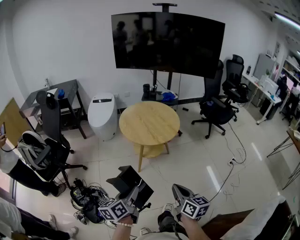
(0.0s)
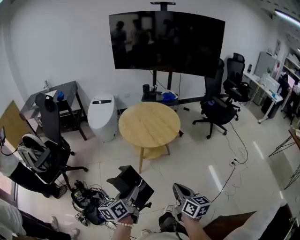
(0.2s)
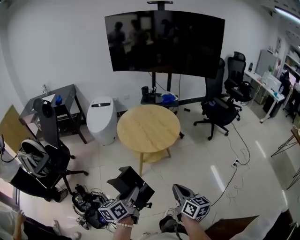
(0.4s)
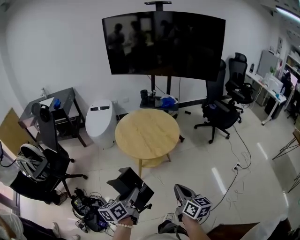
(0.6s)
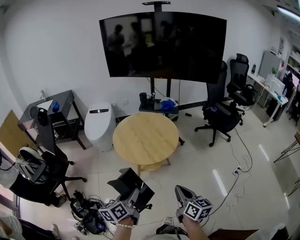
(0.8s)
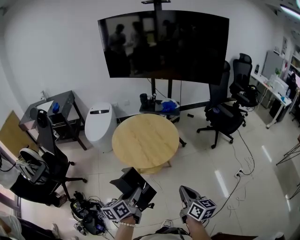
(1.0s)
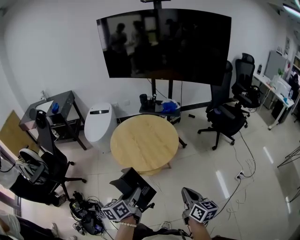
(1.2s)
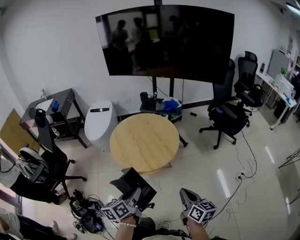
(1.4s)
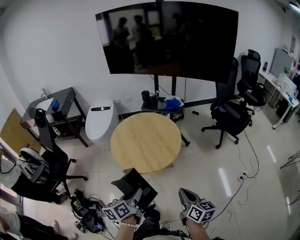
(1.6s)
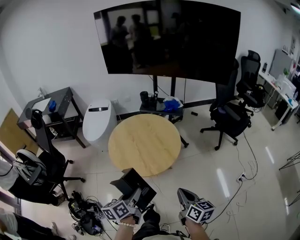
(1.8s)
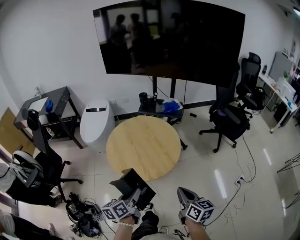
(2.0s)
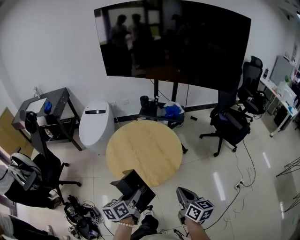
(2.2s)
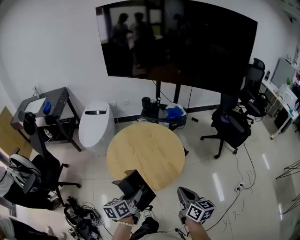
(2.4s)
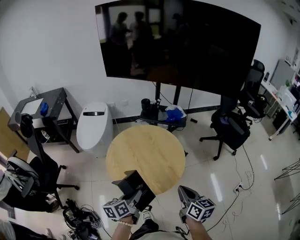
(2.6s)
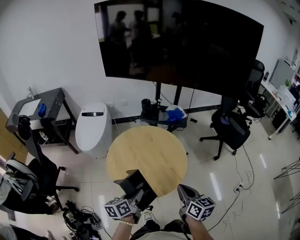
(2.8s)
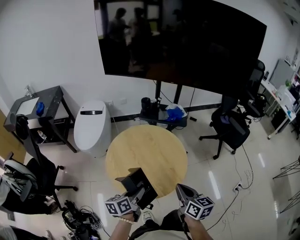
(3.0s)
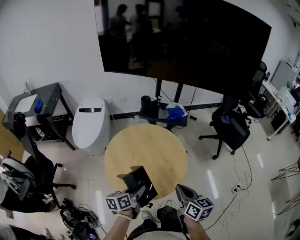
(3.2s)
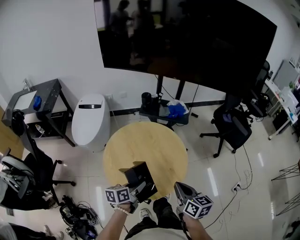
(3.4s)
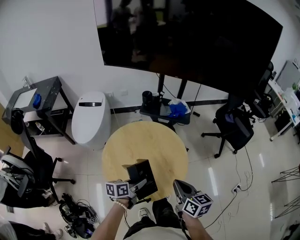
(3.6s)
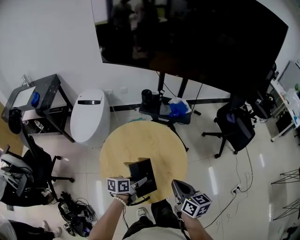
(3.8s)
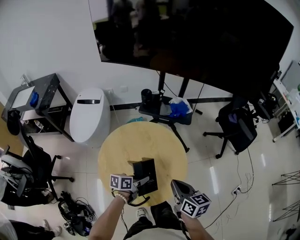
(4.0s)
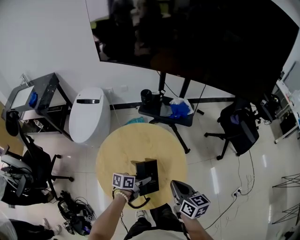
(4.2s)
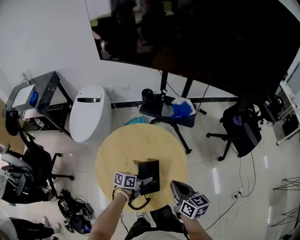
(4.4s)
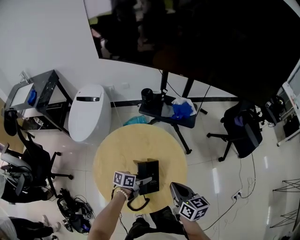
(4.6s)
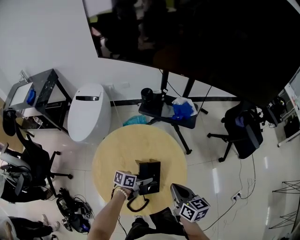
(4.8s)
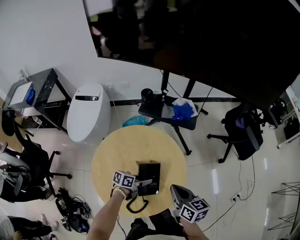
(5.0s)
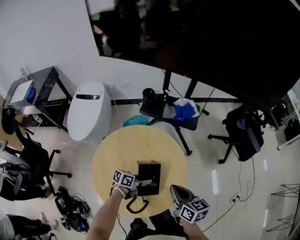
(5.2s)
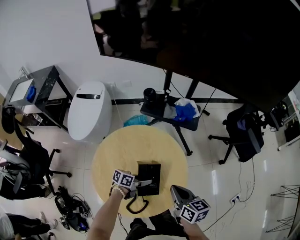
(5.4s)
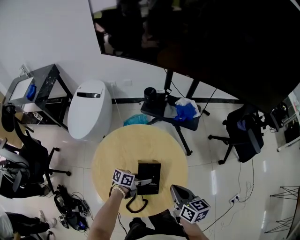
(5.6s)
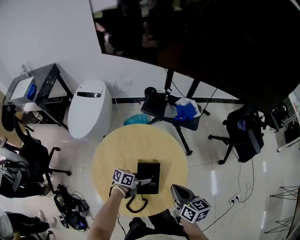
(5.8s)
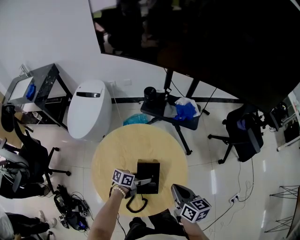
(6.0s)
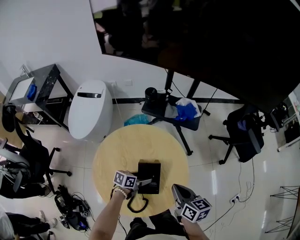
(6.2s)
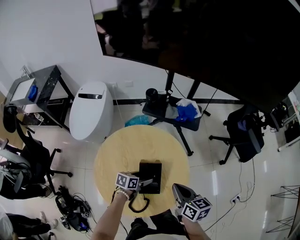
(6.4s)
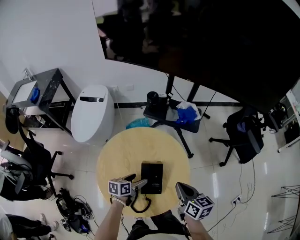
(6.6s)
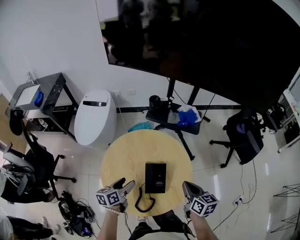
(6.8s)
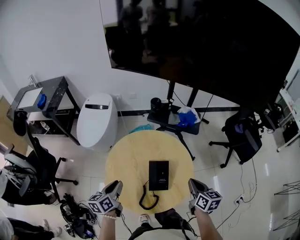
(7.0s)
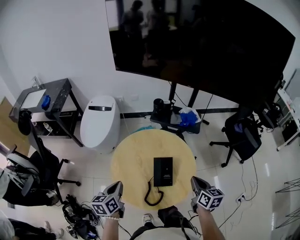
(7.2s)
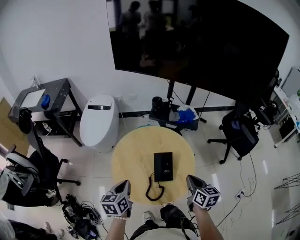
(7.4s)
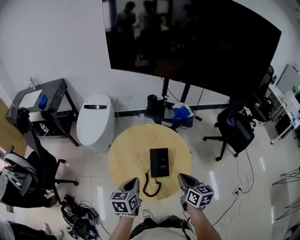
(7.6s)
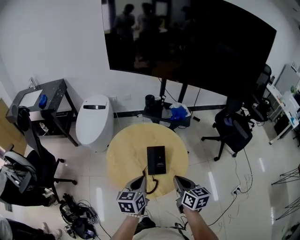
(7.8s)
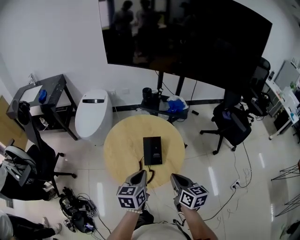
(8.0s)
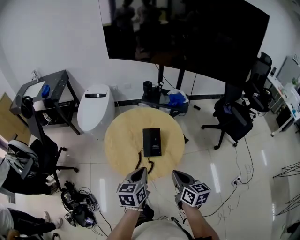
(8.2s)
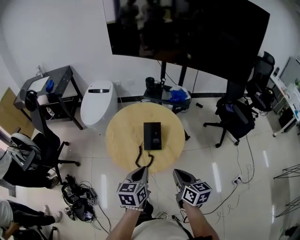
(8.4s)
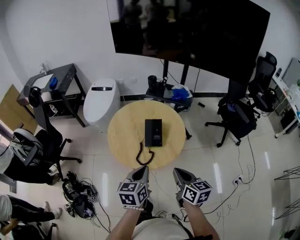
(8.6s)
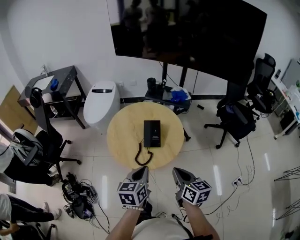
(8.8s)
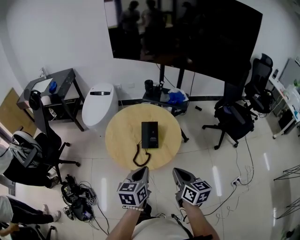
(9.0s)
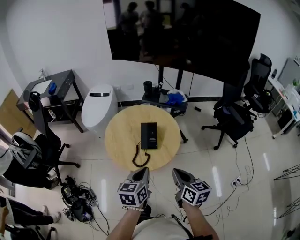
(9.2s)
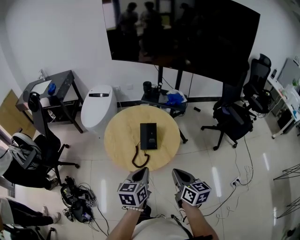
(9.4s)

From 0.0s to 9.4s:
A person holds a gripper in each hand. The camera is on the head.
From 0.0s to 1.6s: Both grippers move forward and to the right, roughly 25 cm.
From 1.6s to 3.2s: Both grippers move forward, about 20 cm.
From 3.2s to 4.8s: The right gripper moves forward, about 15 cm, while the left gripper moves forward, downward and to the right, some 25 cm, and rotates some 30 degrees.
From 4.8s to 6.2s: The left gripper opens.
From 6.2s to 7.8s: The left gripper shifts some 30 cm upward and backward, swivels some 40 degrees, and closes. The right gripper shifts some 15 cm backward and upward.
From 7.8s to 9.4s: The left gripper is displaced backward and to the right by approximately 15 cm. The right gripper goes roughly 15 cm backward.

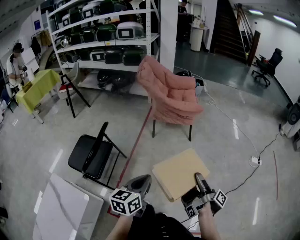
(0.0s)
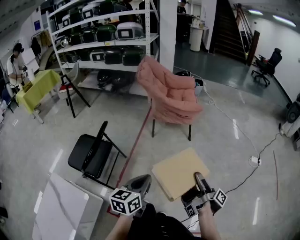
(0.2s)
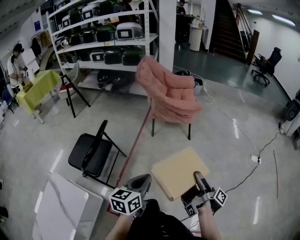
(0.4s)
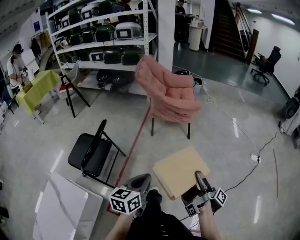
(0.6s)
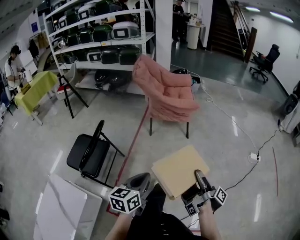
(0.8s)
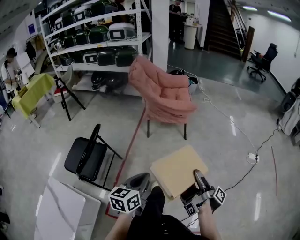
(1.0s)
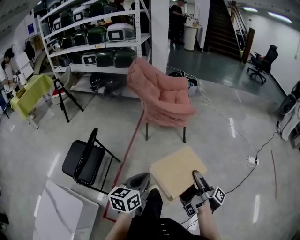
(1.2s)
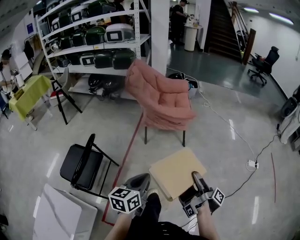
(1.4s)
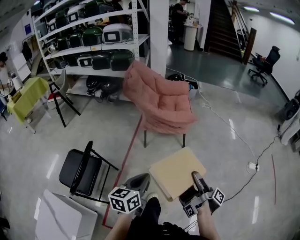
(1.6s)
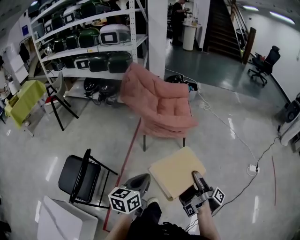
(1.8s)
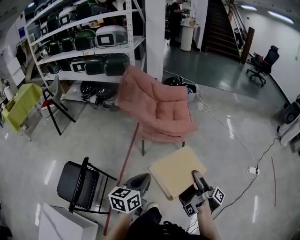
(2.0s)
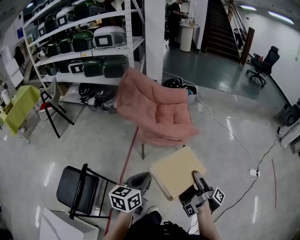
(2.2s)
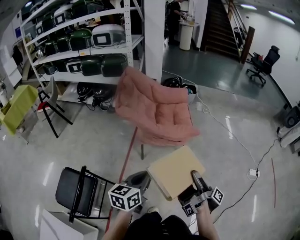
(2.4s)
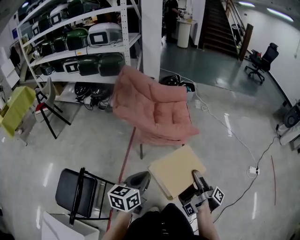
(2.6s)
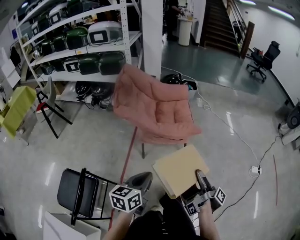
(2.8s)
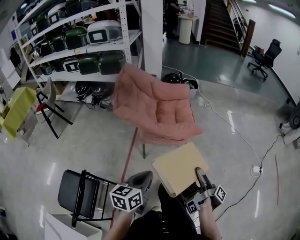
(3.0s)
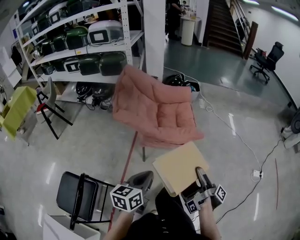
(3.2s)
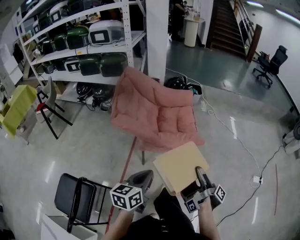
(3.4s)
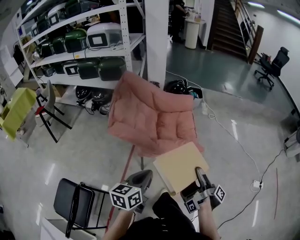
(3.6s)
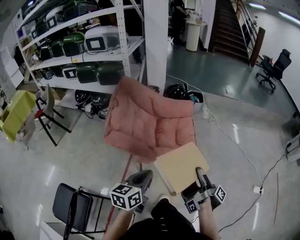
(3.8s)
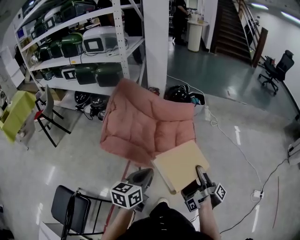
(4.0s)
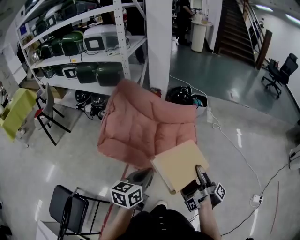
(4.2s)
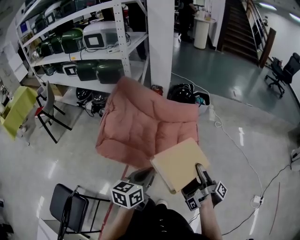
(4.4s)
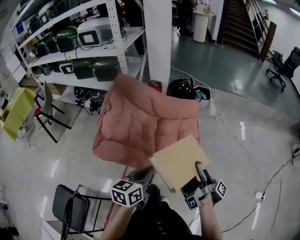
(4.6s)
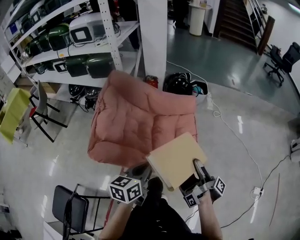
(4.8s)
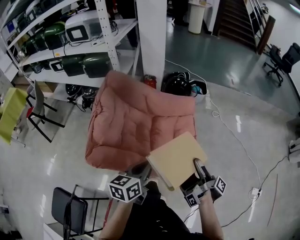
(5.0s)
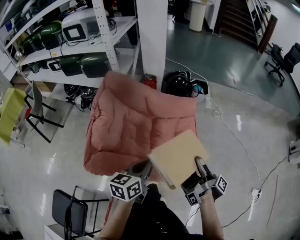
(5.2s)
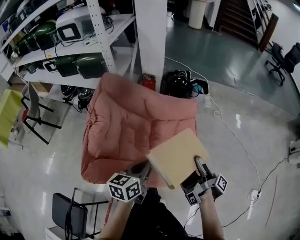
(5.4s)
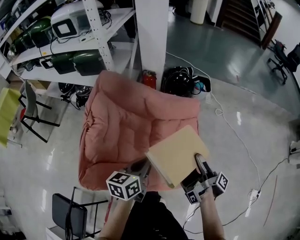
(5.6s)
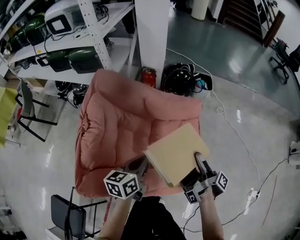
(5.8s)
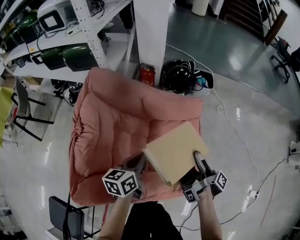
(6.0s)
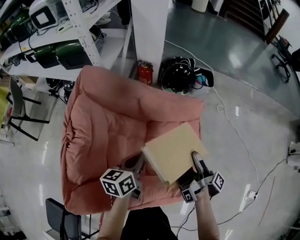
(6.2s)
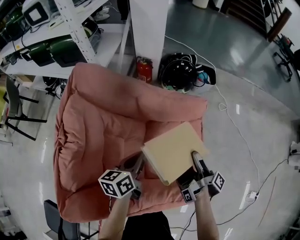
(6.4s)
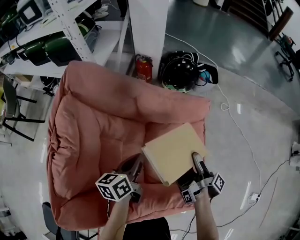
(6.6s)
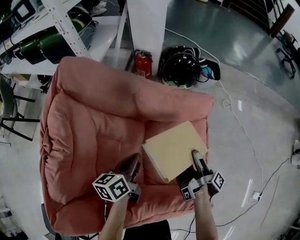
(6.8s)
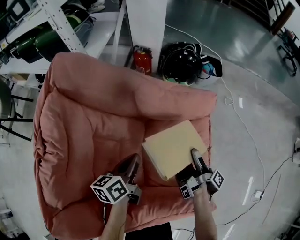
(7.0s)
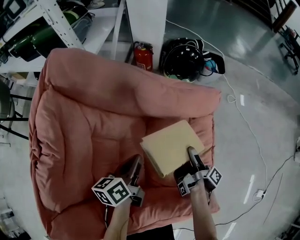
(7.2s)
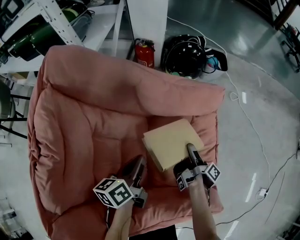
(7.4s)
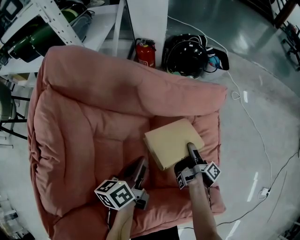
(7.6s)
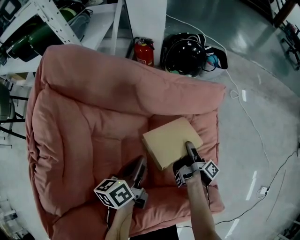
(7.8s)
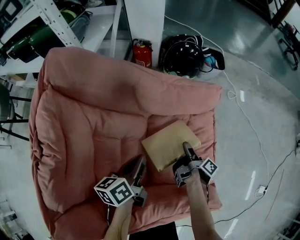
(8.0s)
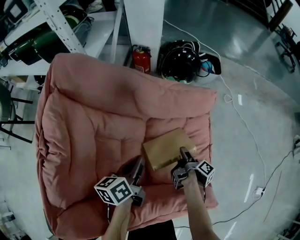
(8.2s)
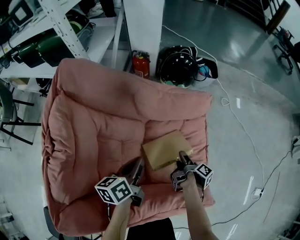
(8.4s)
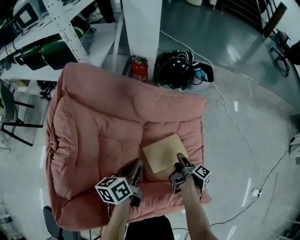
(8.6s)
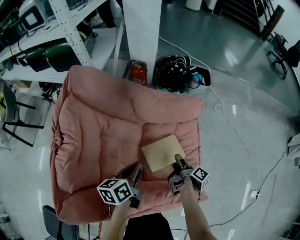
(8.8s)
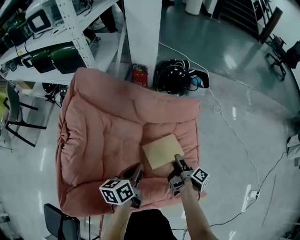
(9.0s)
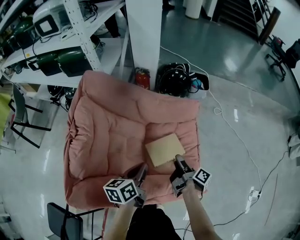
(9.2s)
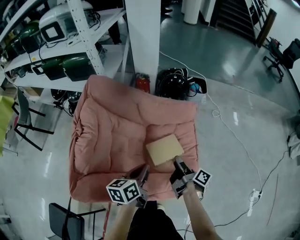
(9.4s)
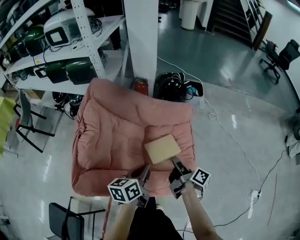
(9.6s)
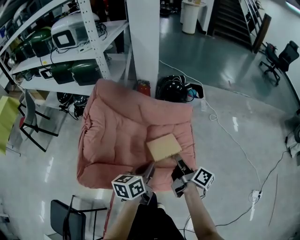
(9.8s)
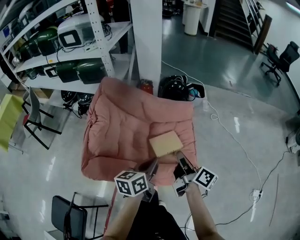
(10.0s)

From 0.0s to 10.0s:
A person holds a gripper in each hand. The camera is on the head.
From 0.0s to 1.4s: The left gripper ends up roughly 10 cm from where it was.
From 1.4s to 2.8s: The left gripper shifts by about 30 cm.
From 2.8s to 4.2s: The left gripper ends up approximately 30 cm from where it was.
From 4.2s to 5.8s: The left gripper ends up about 30 cm from where it was.
From 5.8s to 7.2s: The left gripper is displaced downward by about 20 cm.
From 7.2s to 8.6s: The left gripper moves upward, about 5 cm.
From 8.6s to 10.0s: The left gripper is displaced upward by some 20 cm.

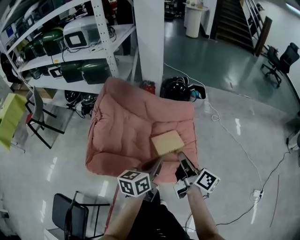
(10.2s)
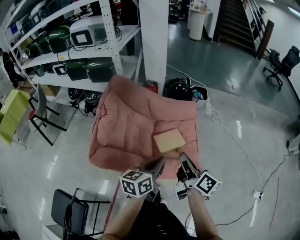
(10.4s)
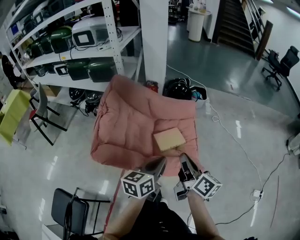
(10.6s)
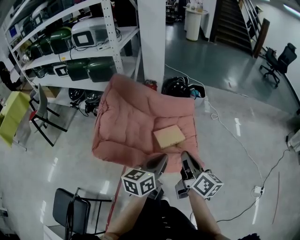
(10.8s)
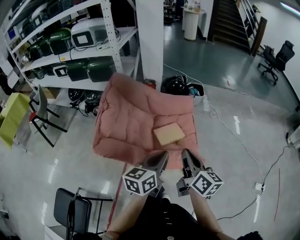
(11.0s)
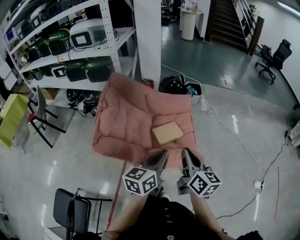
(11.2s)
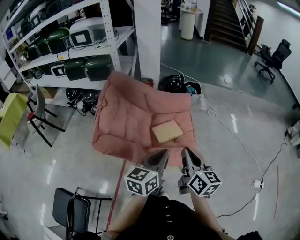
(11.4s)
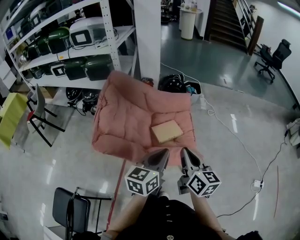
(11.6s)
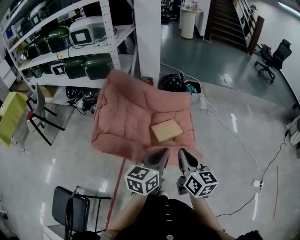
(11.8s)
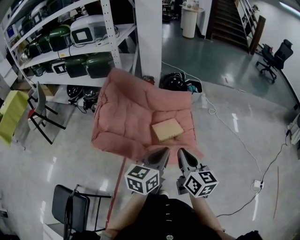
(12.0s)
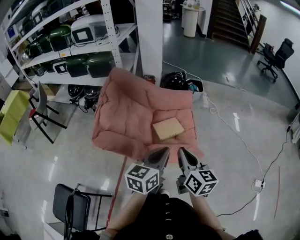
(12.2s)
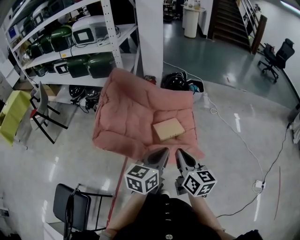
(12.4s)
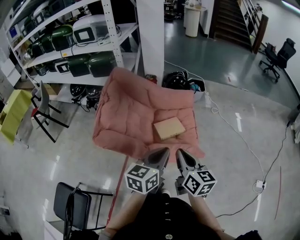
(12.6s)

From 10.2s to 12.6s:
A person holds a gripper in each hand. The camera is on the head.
From 10.2s to 11.4s: The left gripper changes place by about 10 cm.

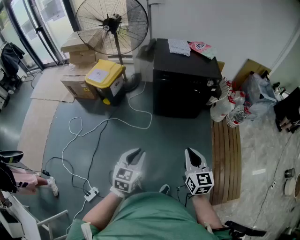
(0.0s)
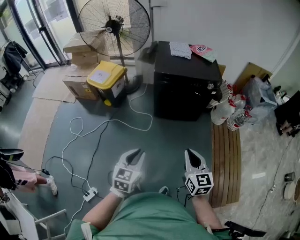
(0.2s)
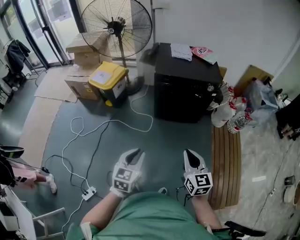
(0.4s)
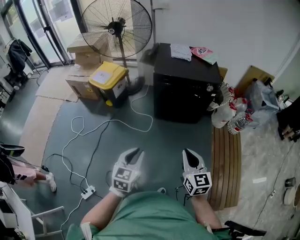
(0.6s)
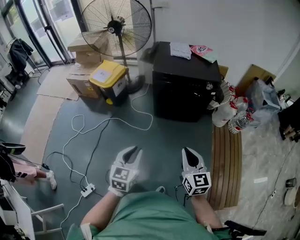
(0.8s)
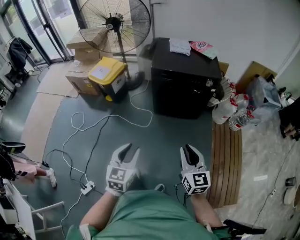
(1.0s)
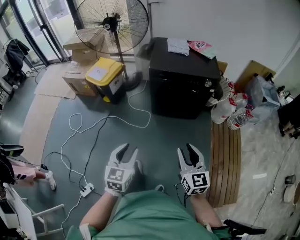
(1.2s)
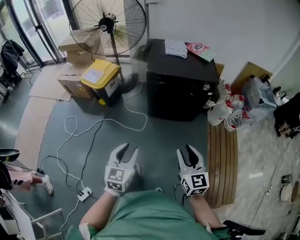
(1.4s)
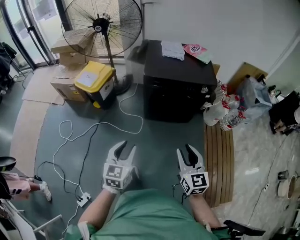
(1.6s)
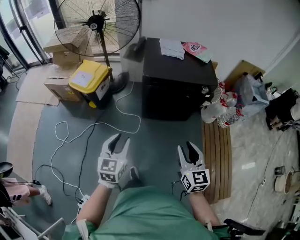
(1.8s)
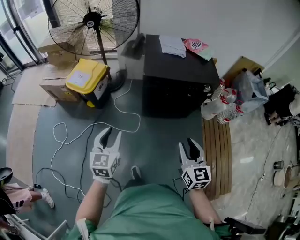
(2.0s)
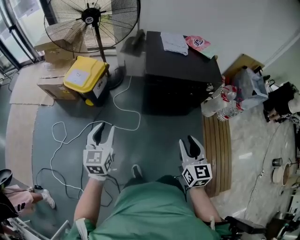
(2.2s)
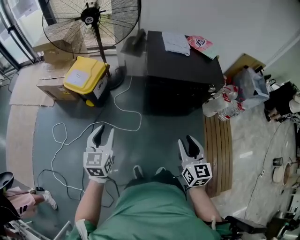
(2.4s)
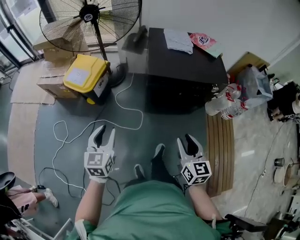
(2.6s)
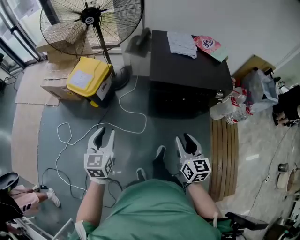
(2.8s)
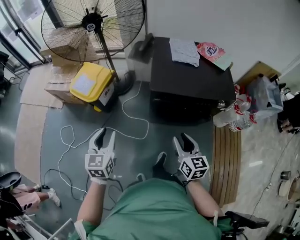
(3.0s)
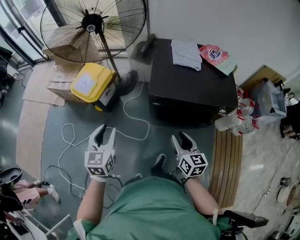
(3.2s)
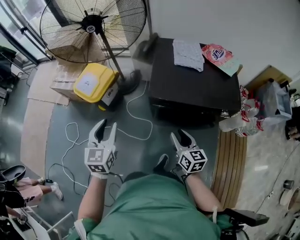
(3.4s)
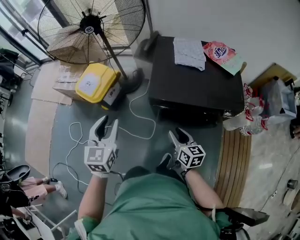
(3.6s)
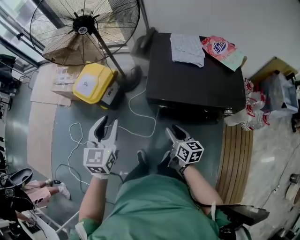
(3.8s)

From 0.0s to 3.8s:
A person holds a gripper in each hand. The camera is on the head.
From 0.0s to 1.2s: The right gripper changes place by approximately 5 cm, and opens.
From 1.2s to 2.6s: The two grippers go roughly 35 cm forward and to the left.
From 2.6s to 3.8s: The left gripper shifts roughly 25 cm forward and to the right. Meanwhile the right gripper is displaced forward and downward by roughly 30 cm, and changes its angle by some 30 degrees.
